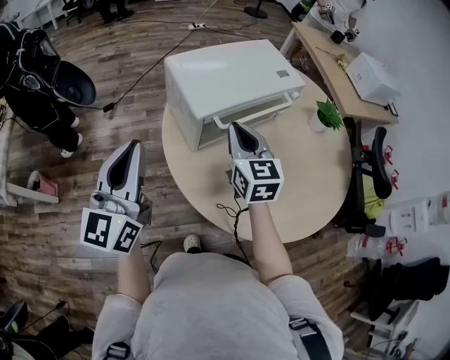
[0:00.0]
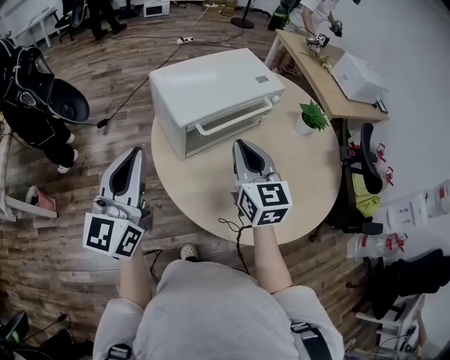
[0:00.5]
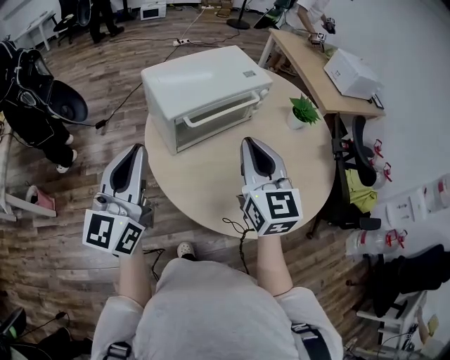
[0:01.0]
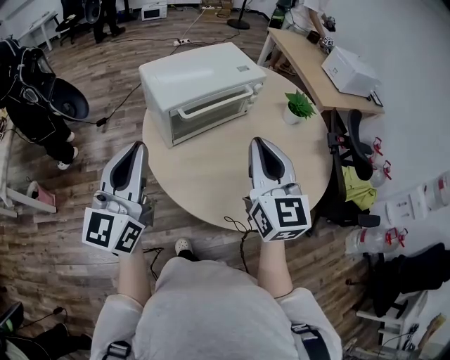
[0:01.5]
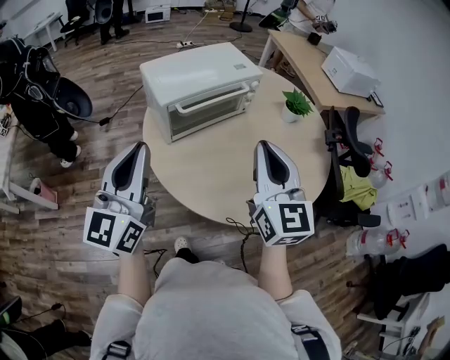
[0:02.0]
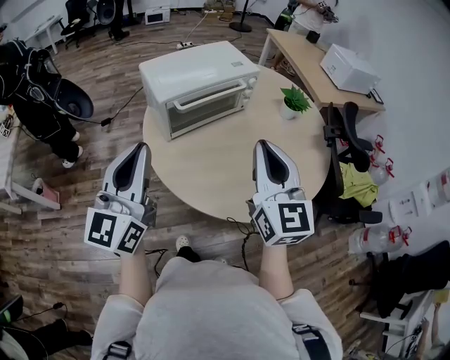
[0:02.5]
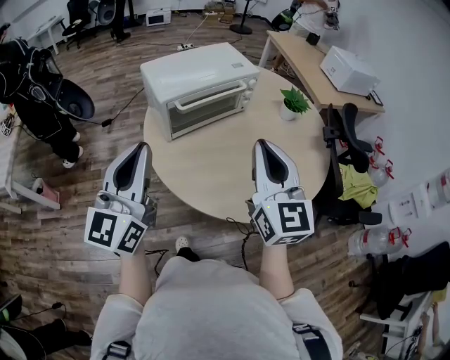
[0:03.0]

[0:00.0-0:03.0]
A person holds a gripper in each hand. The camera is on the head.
0:00.0 to 0:01.5: The left gripper heads to the right and backward, covering some 15 cm; the right gripper is displaced backward, to the right and upward by roughly 25 cm.
0:01.5 to 0:03.0: The grippers both shift backward by approximately 5 cm.

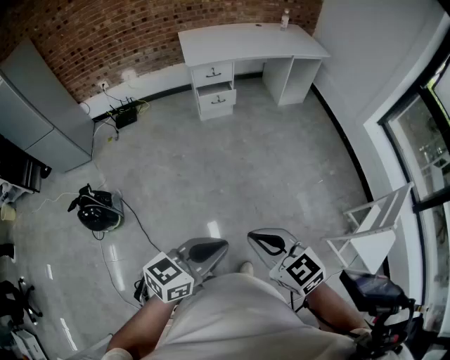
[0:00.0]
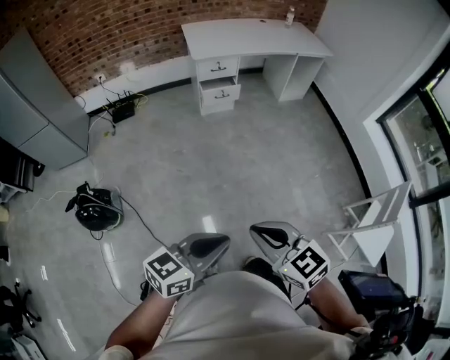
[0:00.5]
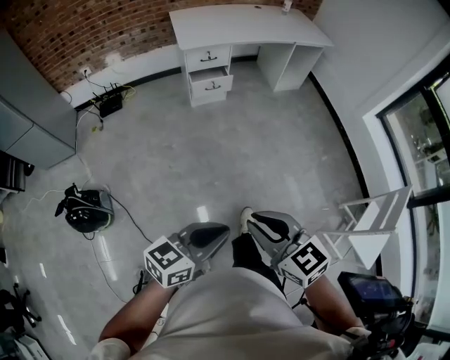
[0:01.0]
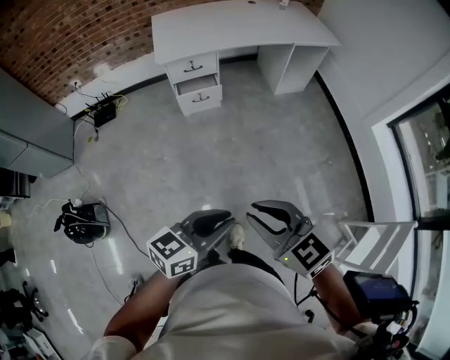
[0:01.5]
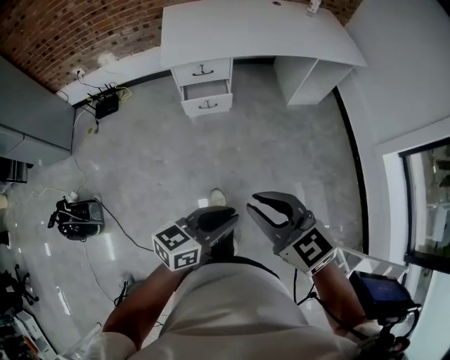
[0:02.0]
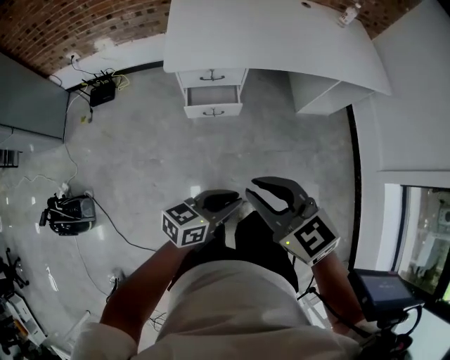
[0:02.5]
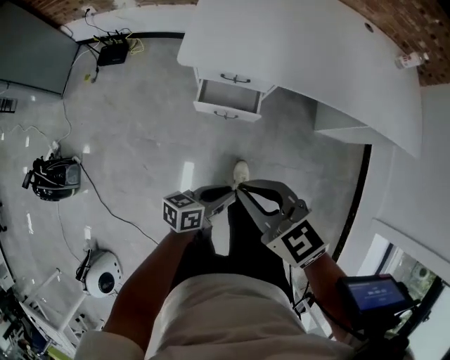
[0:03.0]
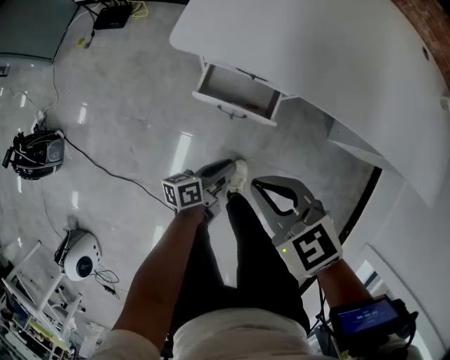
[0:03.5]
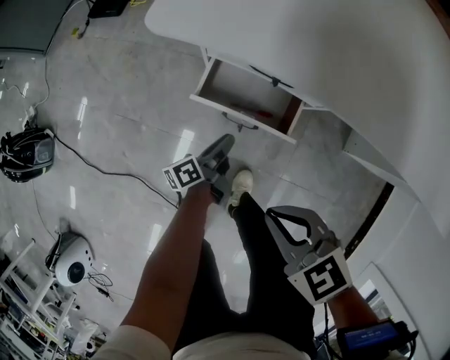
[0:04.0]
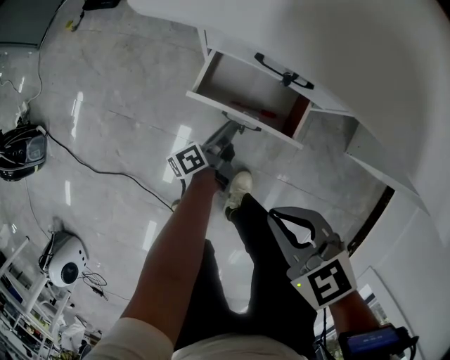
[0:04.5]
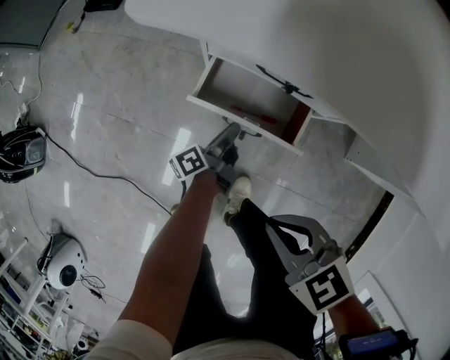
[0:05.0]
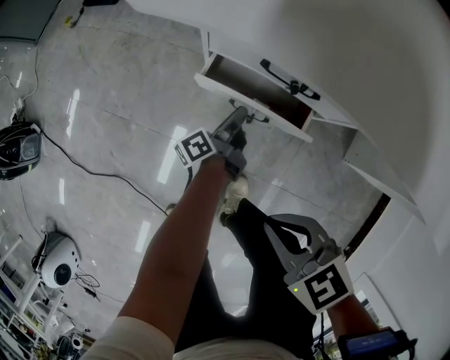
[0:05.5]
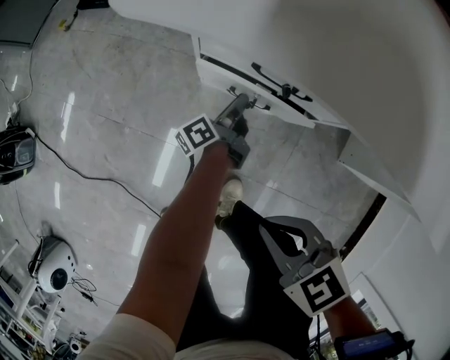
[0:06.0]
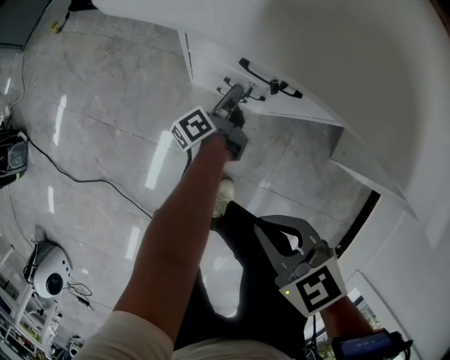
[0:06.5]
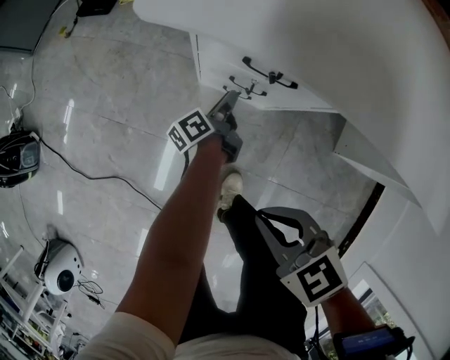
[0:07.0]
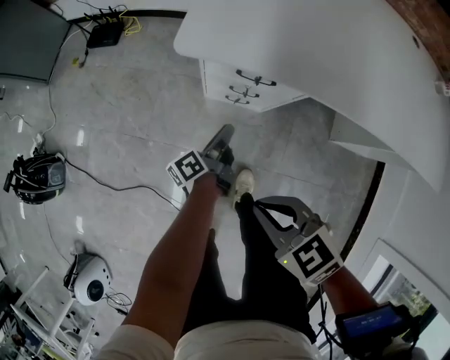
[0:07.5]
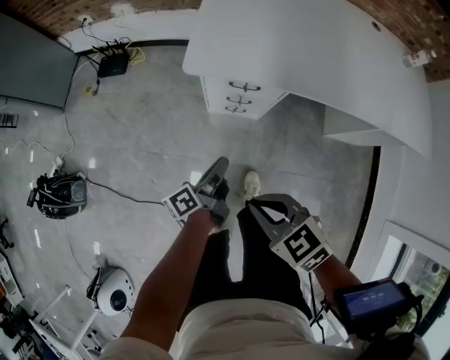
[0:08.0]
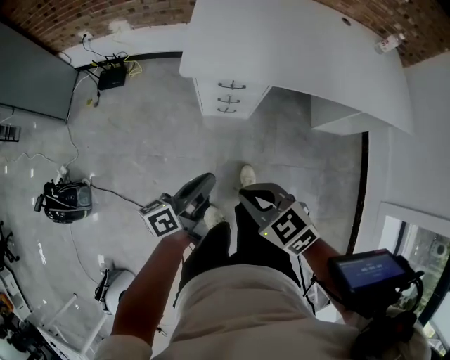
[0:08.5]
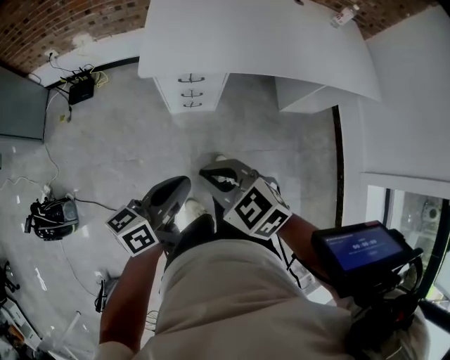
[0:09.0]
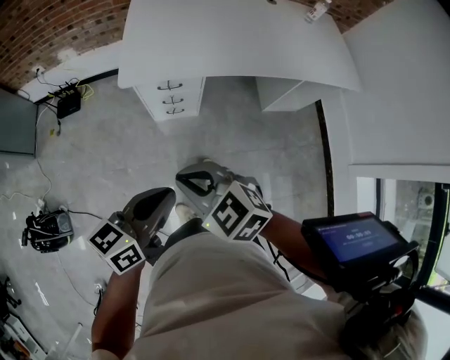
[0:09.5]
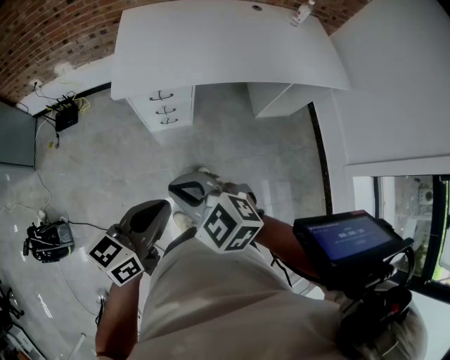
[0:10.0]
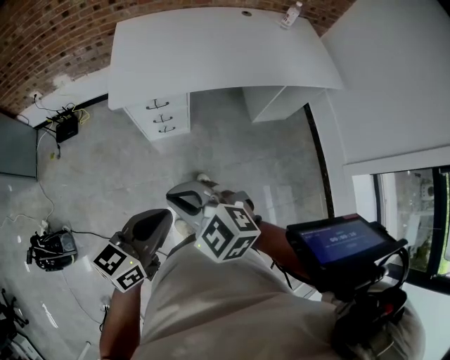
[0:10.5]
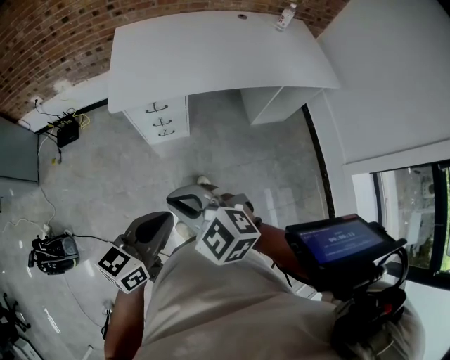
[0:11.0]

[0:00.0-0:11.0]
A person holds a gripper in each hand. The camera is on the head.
0:00.0 to 0:02.0: The two grippers travel together, forward, some 50 cm.
0:02.0 to 0:03.5: The two grippers travel together, roughly 50 cm. The right gripper rotates roughly 30 degrees; the left gripper rotates around the line of its fingers by approximately 50 degrees, counterclockwise from behind.
0:03.5 to 0:05.5: The left gripper is displaced downward and forward by about 25 cm, and changes its angle by approximately 30 degrees, while the right gripper is displaced downward by some 15 cm.
0:05.5 to 0:07.5: The right gripper goes about 15 cm upward and to the left, while the left gripper shifts some 20 cm upward.
0:07.5 to 0:09.0: The right gripper travels upward and backward by about 25 cm, while the left gripper shifts roughly 50 cm upward and backward, and swivels roughly 50 degrees.
0:09.0 to 0:11.0: The right gripper shifts roughly 10 cm upward and backward; the left gripper shifts some 10 cm backward, upward and to the right, and changes its angle by roughly 20 degrees.

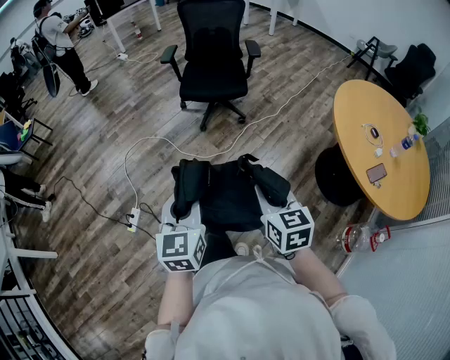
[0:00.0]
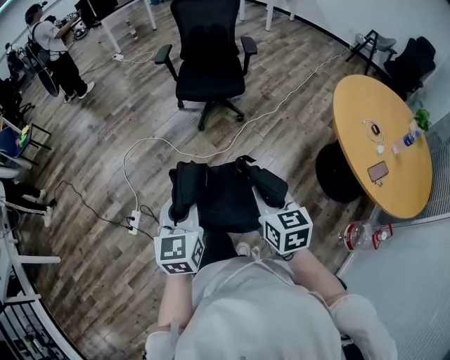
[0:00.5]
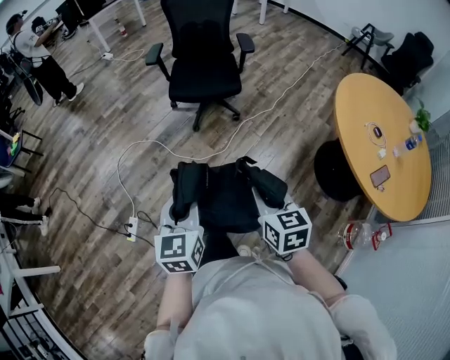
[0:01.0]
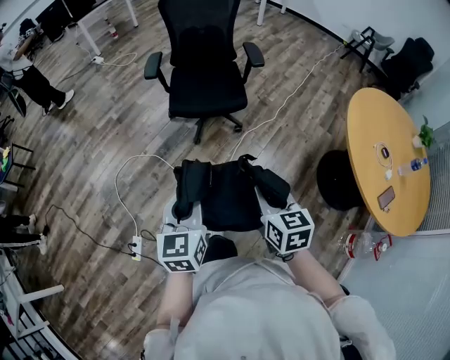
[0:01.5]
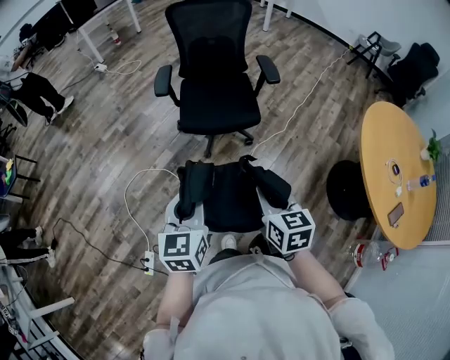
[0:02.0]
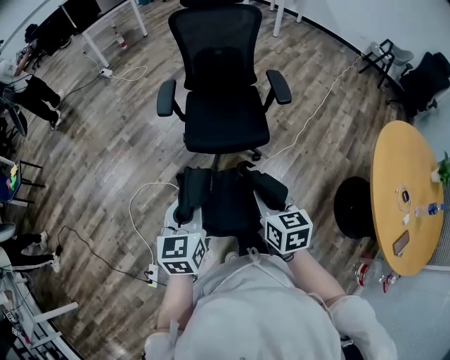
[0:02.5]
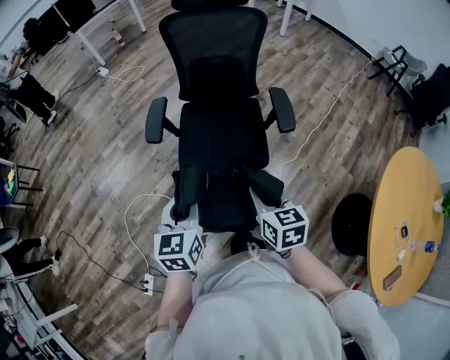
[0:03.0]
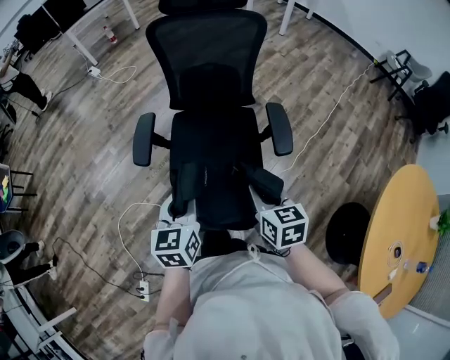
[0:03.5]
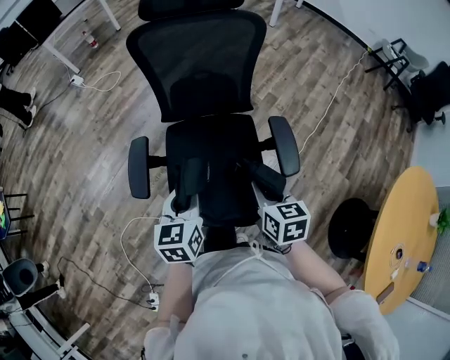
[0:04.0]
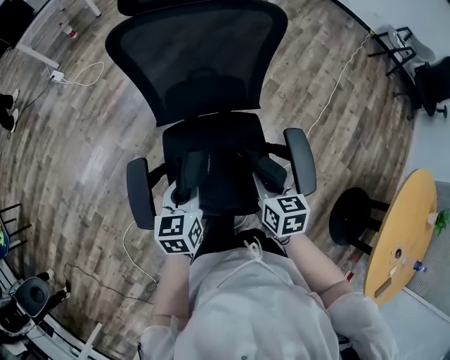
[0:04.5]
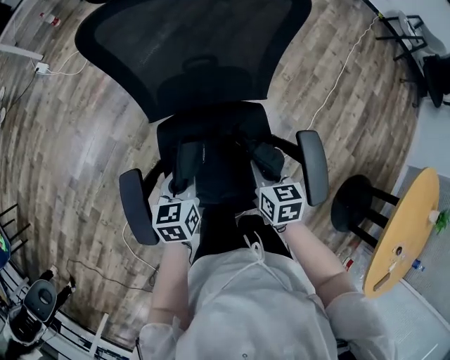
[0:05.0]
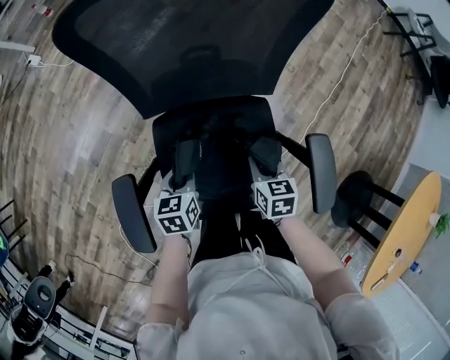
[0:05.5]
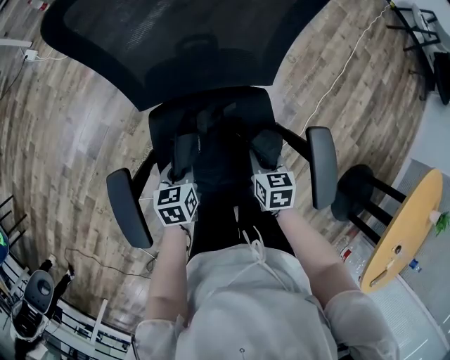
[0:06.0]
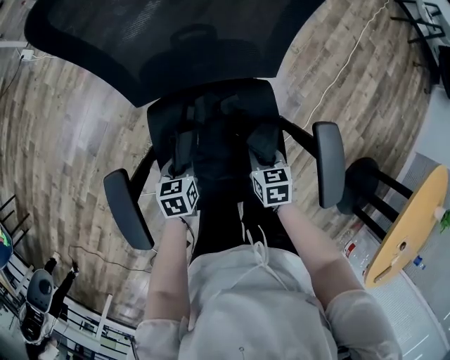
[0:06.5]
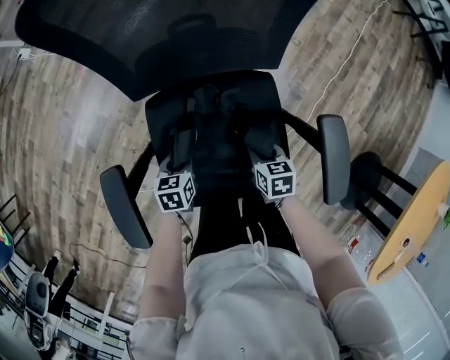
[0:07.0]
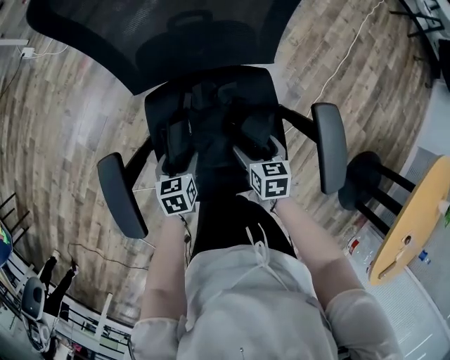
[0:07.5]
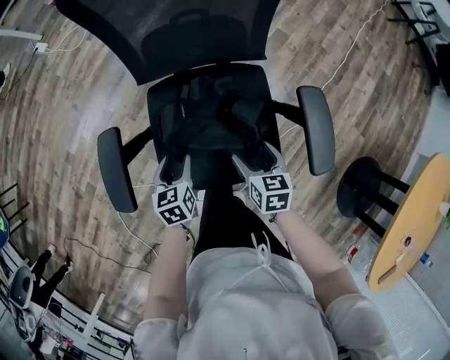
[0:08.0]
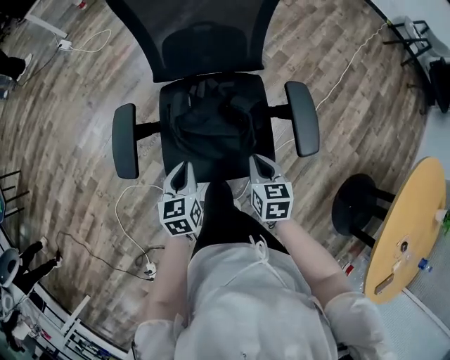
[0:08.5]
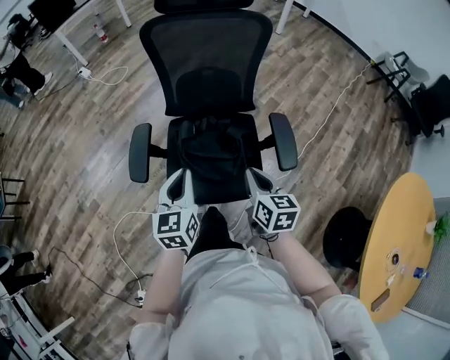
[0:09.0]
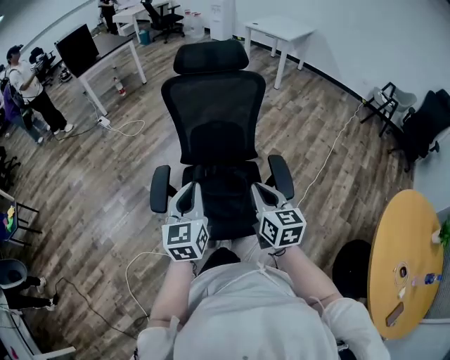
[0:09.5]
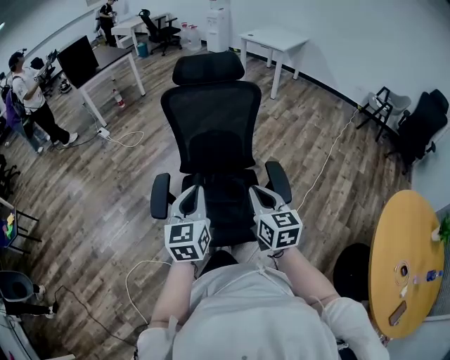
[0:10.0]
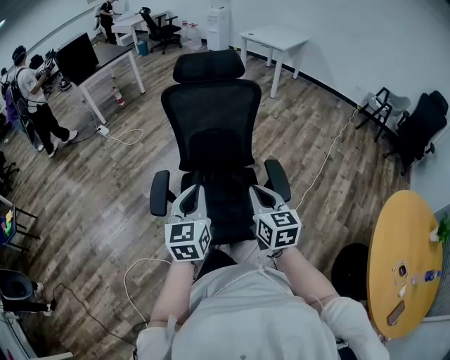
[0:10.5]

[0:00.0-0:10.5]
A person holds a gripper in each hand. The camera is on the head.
0:00.0 to 0:02.0: The two grippers travel together, forward, some 40 cm.
0:02.0 to 0:04.0: The two grippers travel together, forward, about 60 cm.
0:04.0 to 0:06.5: The two grippers go roughly 40 cm downward and forward. The right gripper turns by roughly 20 degrees. The left gripper turns by about 30 degrees.
0:06.5 to 0:08.5: Both grippers travel together backward and upward, about 25 cm. The left gripper swivels roughly 20 degrees, and opens, then closes once more, while the right gripper opens, then closes again.
0:08.5 to 0:10.5: The two grippers go about 35 cm upward. The left gripper rotates roughly 30 degrees. Meanwhile the right gripper swivels about 30 degrees.

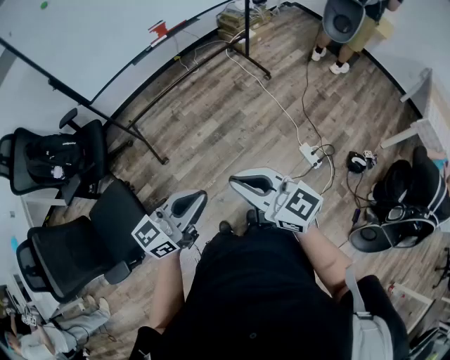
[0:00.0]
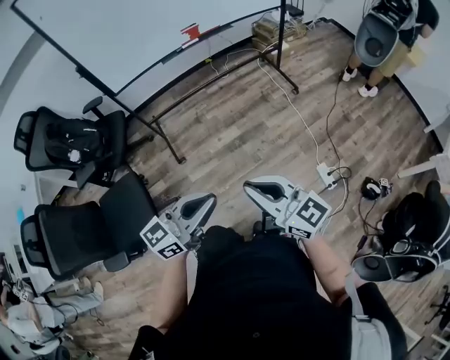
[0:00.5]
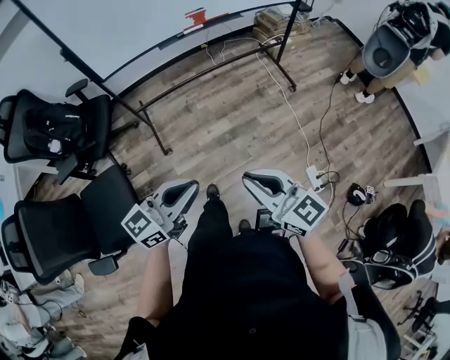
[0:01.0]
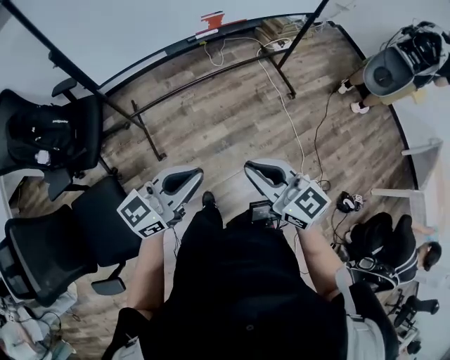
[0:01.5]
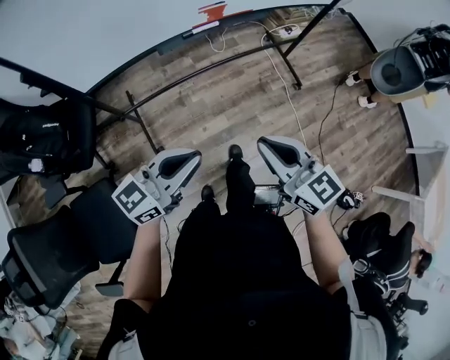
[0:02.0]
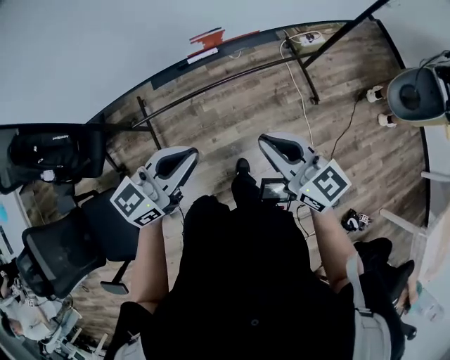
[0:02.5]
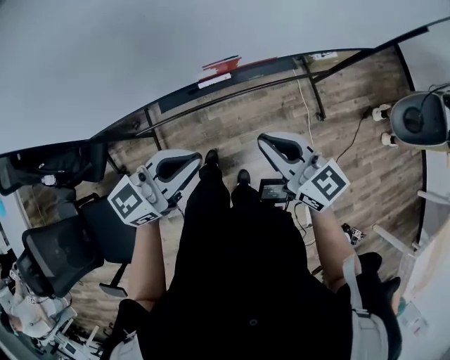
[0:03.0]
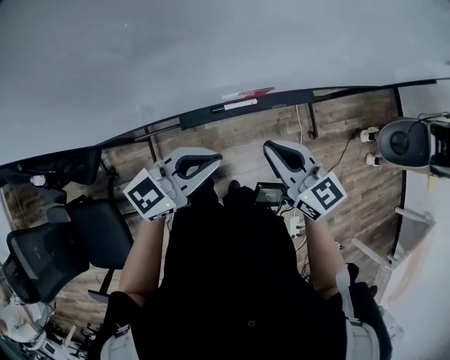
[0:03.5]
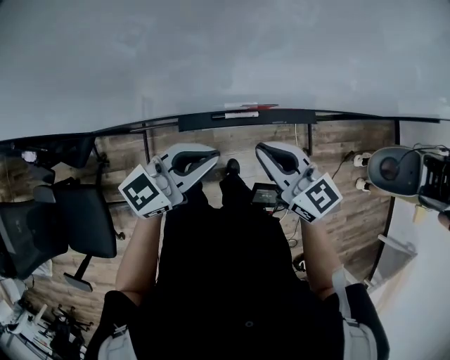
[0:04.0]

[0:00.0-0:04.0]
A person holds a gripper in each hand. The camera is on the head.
0:00.0 to 0:02.0: Both grippers are carried forward, about 40 cm.
0:02.0 to 0:04.0: The grippers both shift forward by approximately 30 cm. The right gripper changes its angle by approximately 20 degrees.
